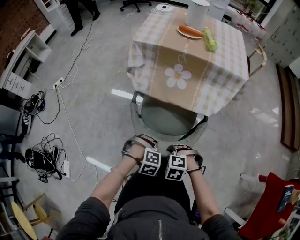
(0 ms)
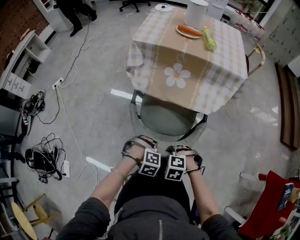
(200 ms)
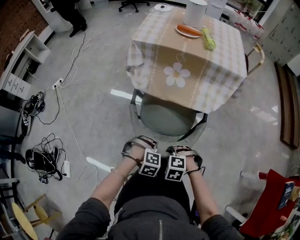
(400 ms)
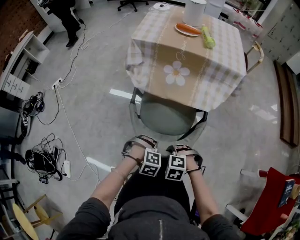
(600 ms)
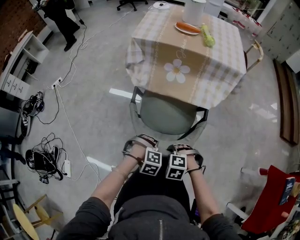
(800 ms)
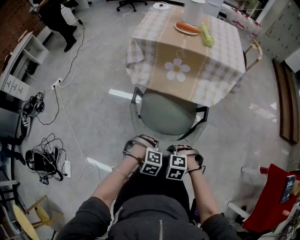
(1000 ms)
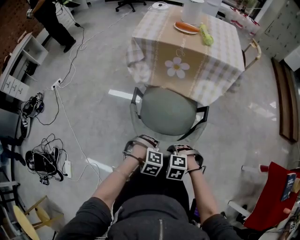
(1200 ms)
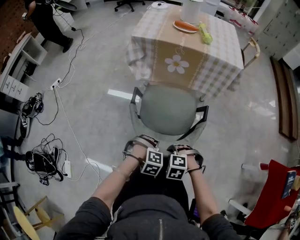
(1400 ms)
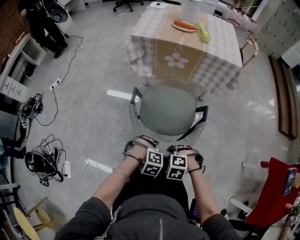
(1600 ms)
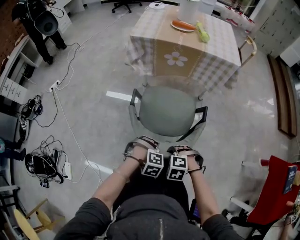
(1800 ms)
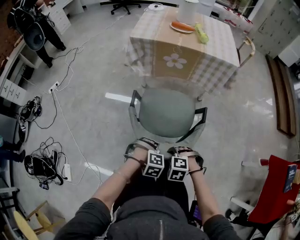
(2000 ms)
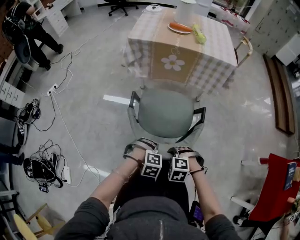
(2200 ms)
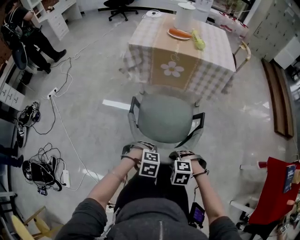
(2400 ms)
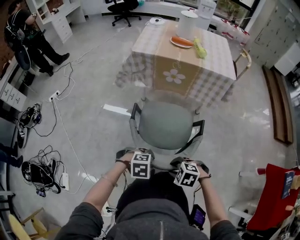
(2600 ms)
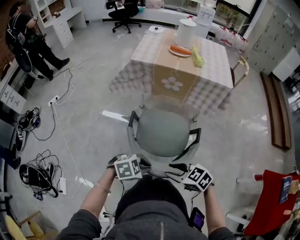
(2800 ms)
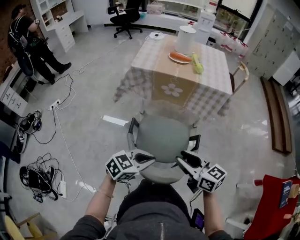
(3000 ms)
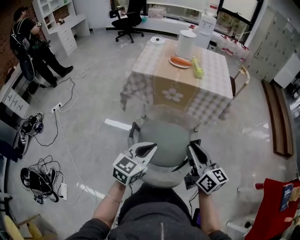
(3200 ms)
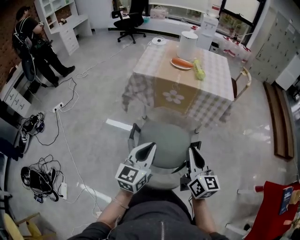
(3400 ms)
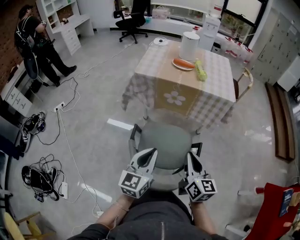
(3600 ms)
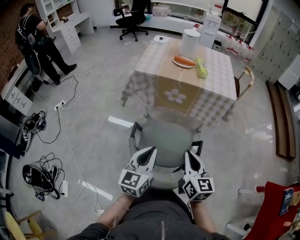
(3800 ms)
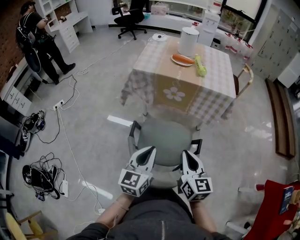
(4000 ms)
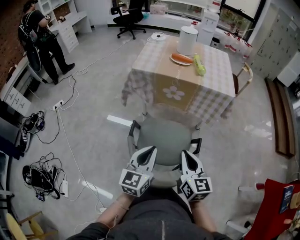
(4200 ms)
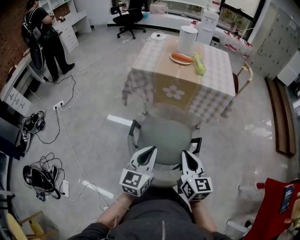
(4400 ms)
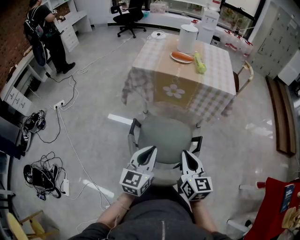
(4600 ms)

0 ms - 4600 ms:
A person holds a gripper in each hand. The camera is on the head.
0 ms - 1600 ms: The left gripper changes place by some 10 cm, while the right gripper shifts by about 10 cm.
1600 ms - 3000 ms: The two grippers go some 20 cm upward. The right gripper points its fingers roughly 60 degrees further upward; the left gripper tips its fingers upward by about 50 degrees.
3000 ms - 4600 ms: The left gripper moves forward and upward, roughly 5 cm, and changes its angle by roughly 50 degrees. Meanwhile the right gripper swivels some 30 degrees, and closes.

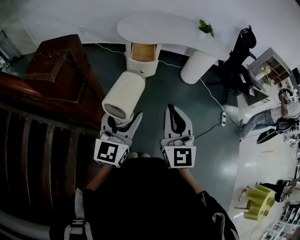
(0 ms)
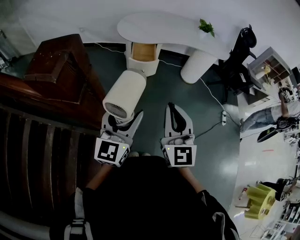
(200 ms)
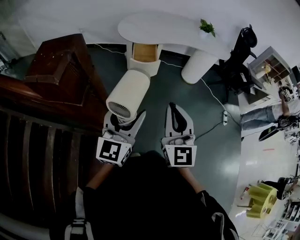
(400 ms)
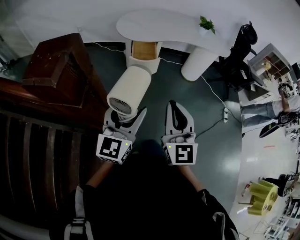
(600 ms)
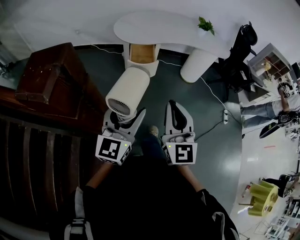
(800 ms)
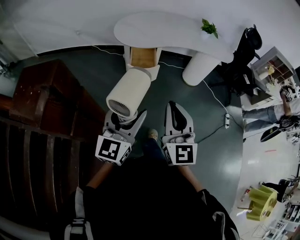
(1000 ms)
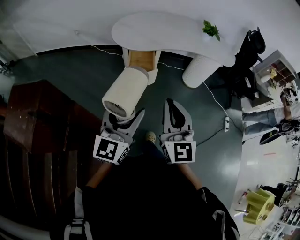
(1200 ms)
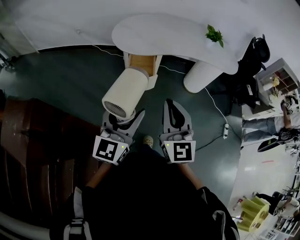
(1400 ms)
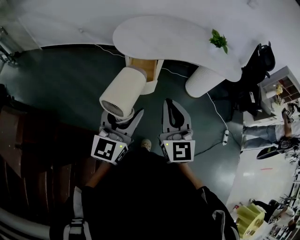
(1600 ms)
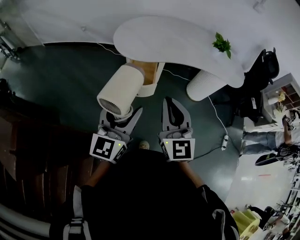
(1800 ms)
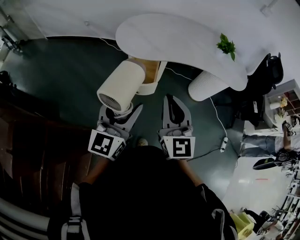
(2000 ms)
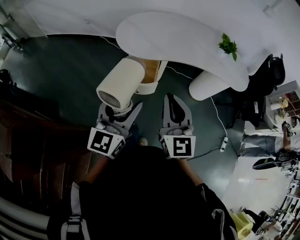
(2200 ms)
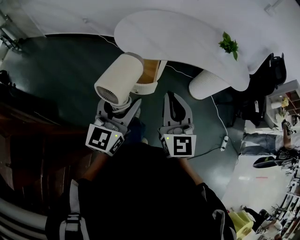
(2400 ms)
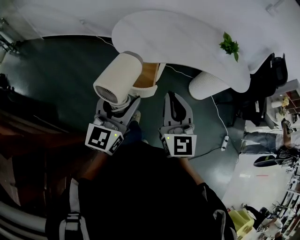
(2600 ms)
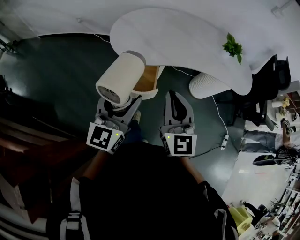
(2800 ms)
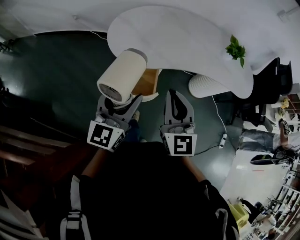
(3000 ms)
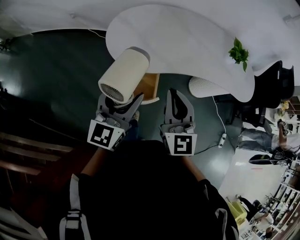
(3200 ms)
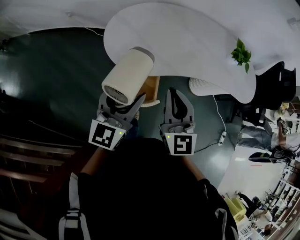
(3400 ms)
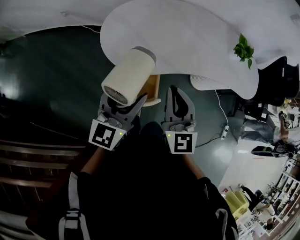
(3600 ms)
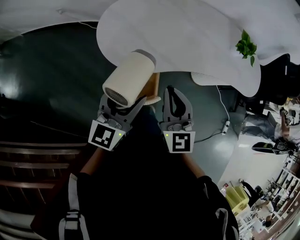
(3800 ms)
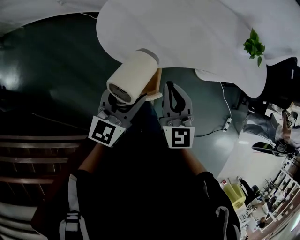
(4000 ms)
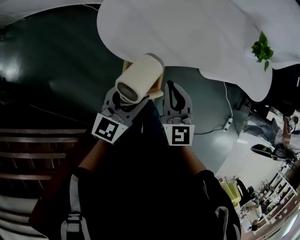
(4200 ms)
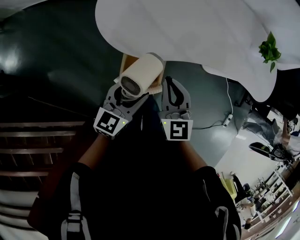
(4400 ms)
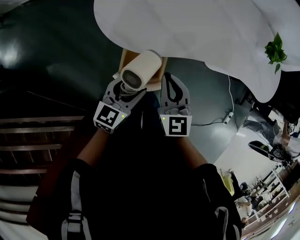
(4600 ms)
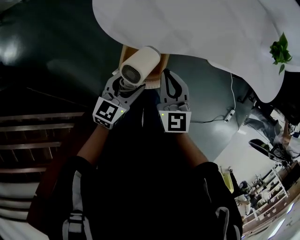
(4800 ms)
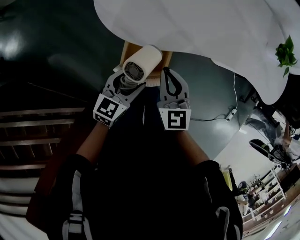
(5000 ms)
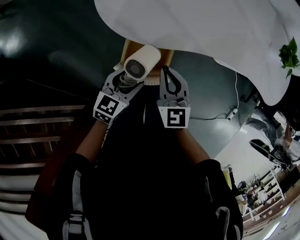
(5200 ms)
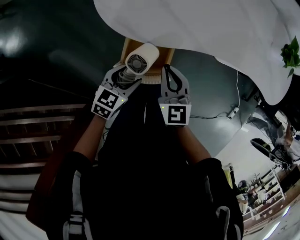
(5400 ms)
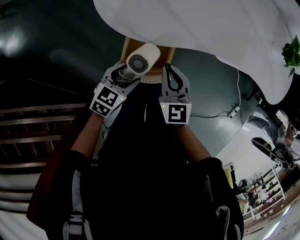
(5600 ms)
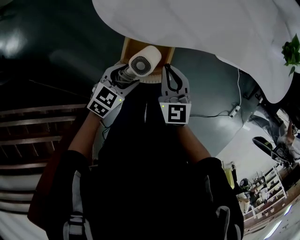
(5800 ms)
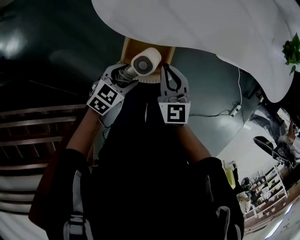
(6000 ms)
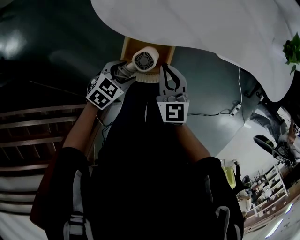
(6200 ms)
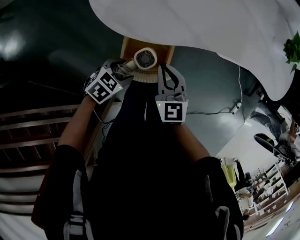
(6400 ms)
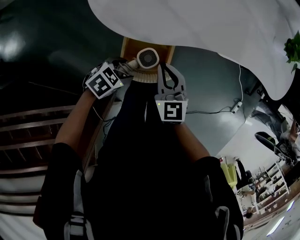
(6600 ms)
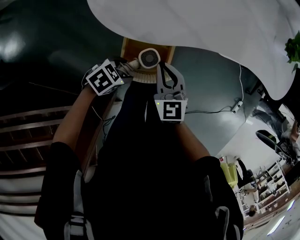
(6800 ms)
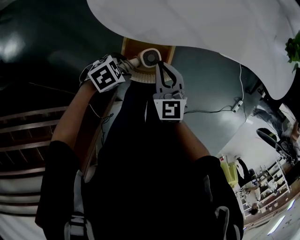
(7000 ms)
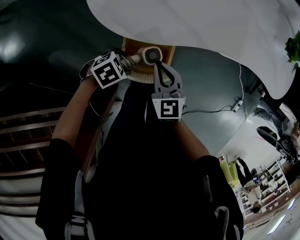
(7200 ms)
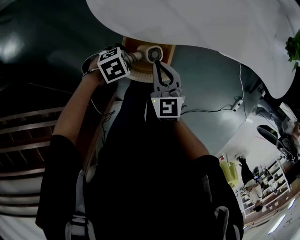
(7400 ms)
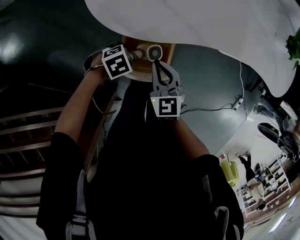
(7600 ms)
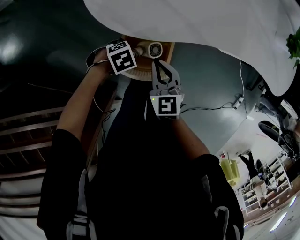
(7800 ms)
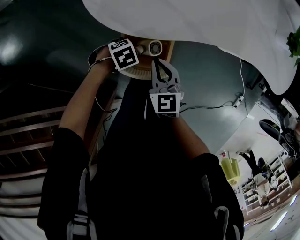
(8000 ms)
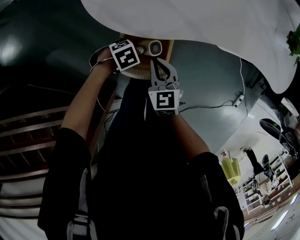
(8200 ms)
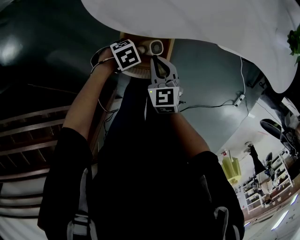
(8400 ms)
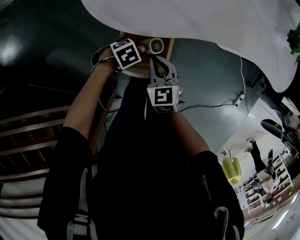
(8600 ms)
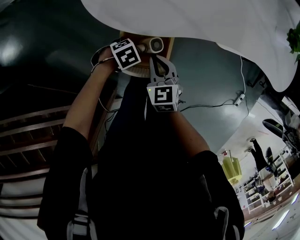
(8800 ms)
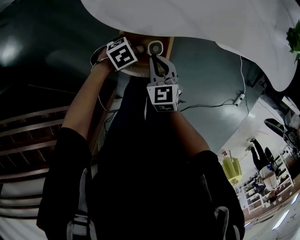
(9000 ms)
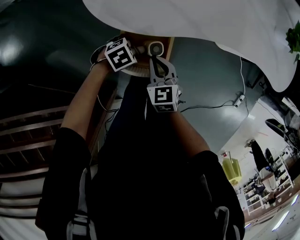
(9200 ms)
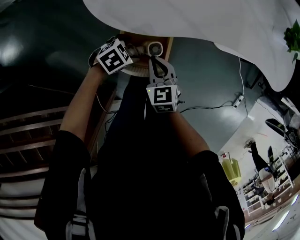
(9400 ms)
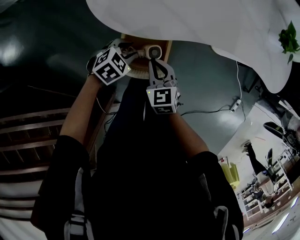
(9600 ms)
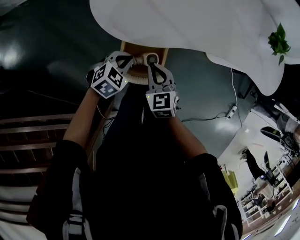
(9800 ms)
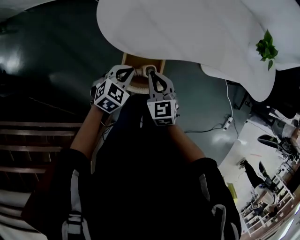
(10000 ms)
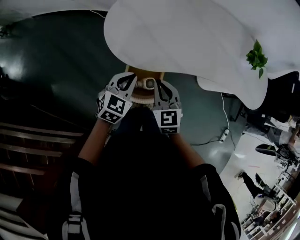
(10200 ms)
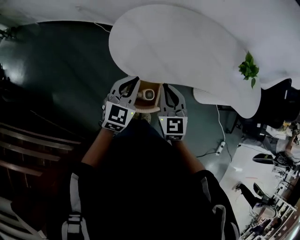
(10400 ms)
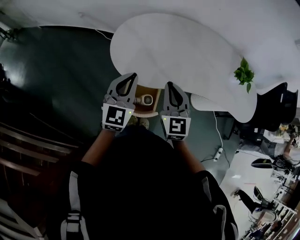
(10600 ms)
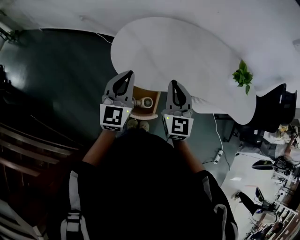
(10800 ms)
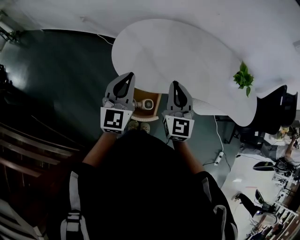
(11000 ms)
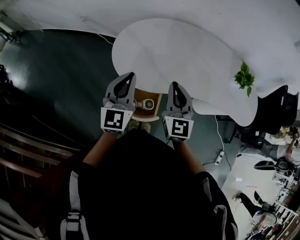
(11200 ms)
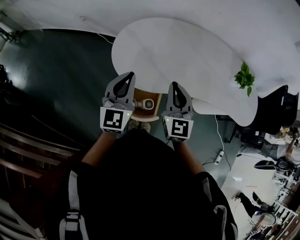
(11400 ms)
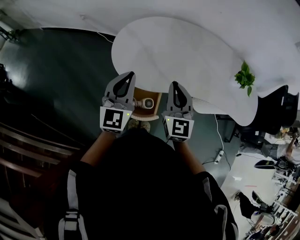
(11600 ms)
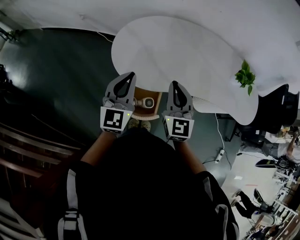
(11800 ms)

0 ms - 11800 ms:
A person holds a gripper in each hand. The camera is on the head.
0 ms - 1400 ms: Both grippers travel together forward, about 25 cm.
1400 ms - 3000 ms: The grippers both shift forward by roughly 30 cm.
3000 ms - 4400 ms: The two grippers go roughly 25 cm downward and forward. The left gripper rotates about 30 degrees.
4400 ms - 6000 ms: Both grippers travel together downward, about 15 cm. The left gripper changes its angle by roughly 30 degrees.
6000 ms - 7400 ms: The left gripper moves downward, approximately 5 cm, and changes its angle by approximately 40 degrees.
7400 ms - 8800 ms: The left gripper shifts roughly 5 cm downward.
8800 ms - 10400 ms: Both grippers move upward, roughly 30 cm. The right gripper swivels about 20 degrees. The left gripper tips its fingers upward by about 50 degrees, and closes its fingers.
10400 ms - 11800 ms: The two grippers go some 10 cm upward. The left gripper swivels roughly 20 degrees.

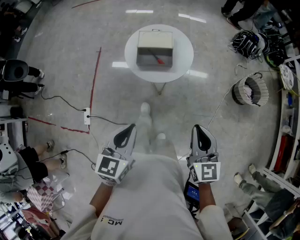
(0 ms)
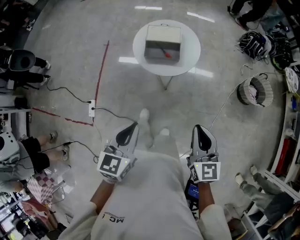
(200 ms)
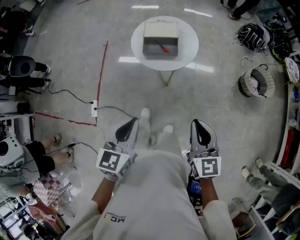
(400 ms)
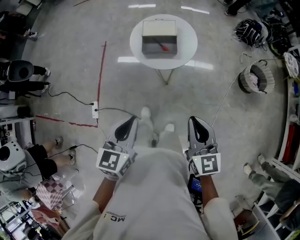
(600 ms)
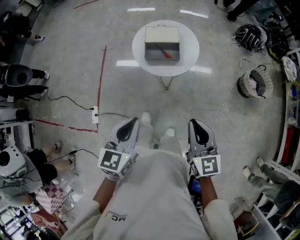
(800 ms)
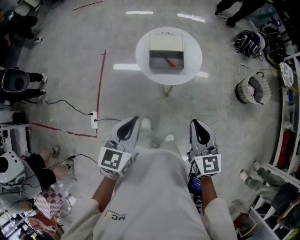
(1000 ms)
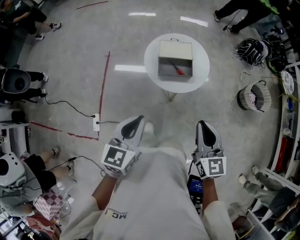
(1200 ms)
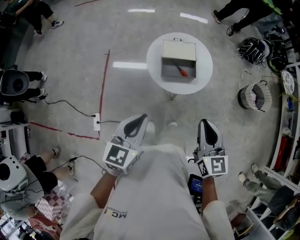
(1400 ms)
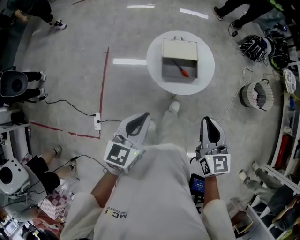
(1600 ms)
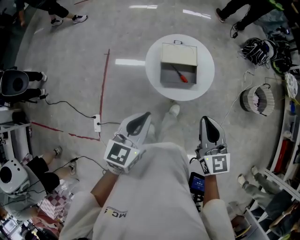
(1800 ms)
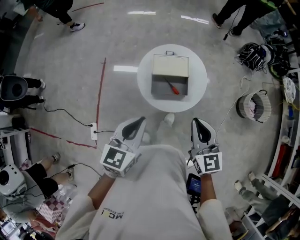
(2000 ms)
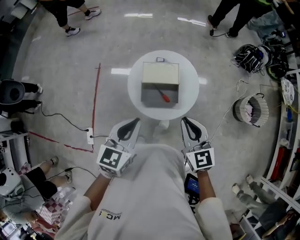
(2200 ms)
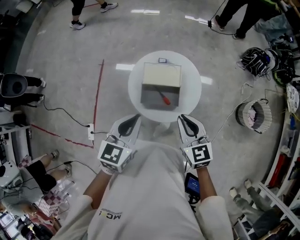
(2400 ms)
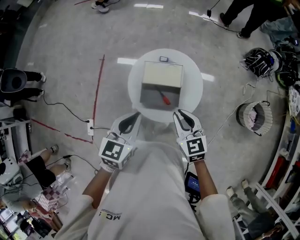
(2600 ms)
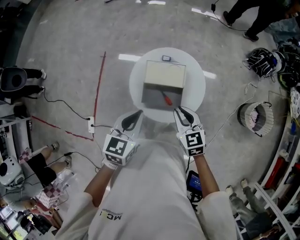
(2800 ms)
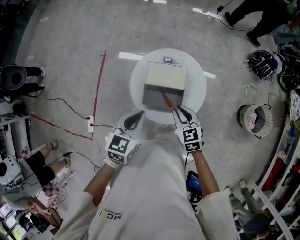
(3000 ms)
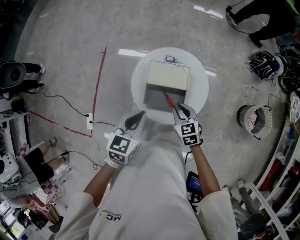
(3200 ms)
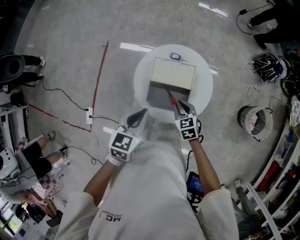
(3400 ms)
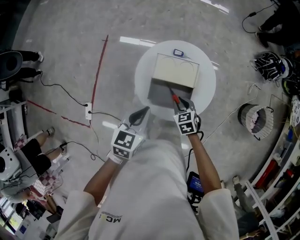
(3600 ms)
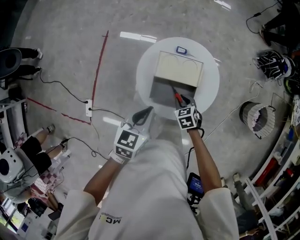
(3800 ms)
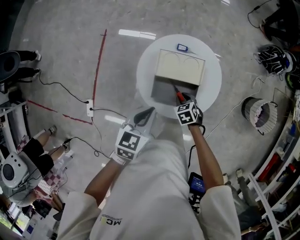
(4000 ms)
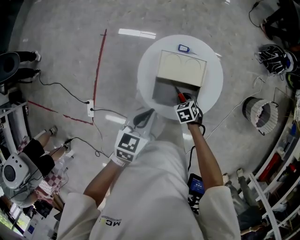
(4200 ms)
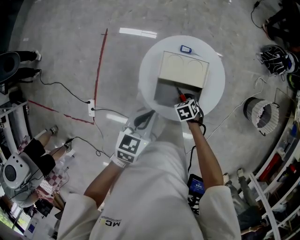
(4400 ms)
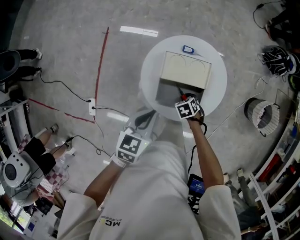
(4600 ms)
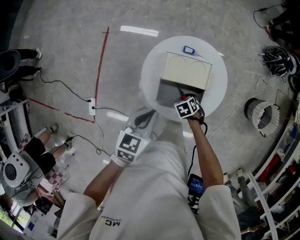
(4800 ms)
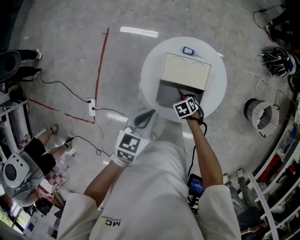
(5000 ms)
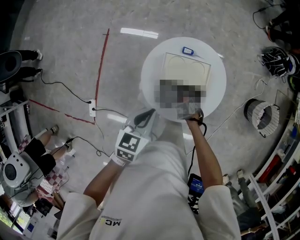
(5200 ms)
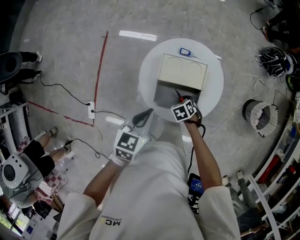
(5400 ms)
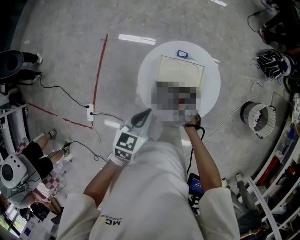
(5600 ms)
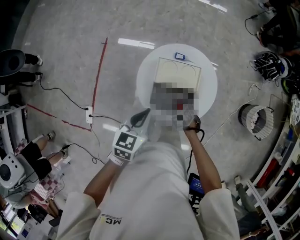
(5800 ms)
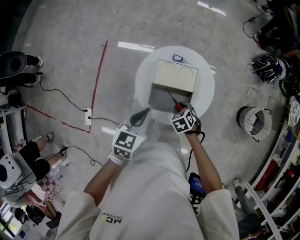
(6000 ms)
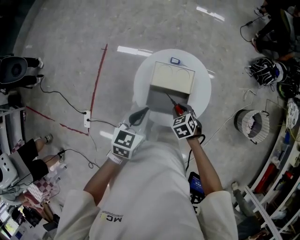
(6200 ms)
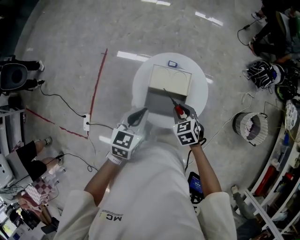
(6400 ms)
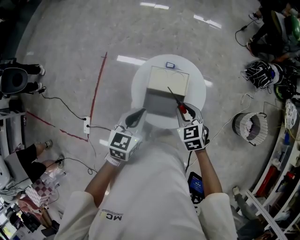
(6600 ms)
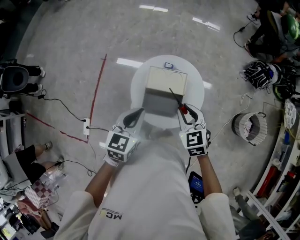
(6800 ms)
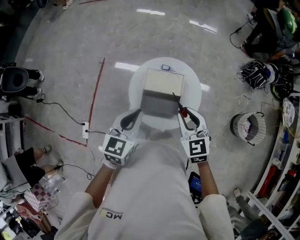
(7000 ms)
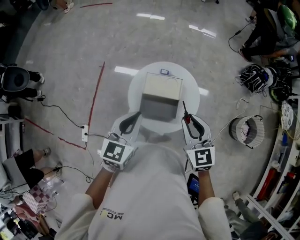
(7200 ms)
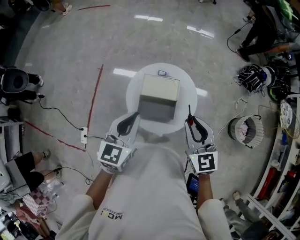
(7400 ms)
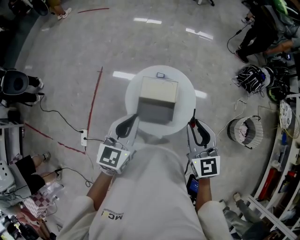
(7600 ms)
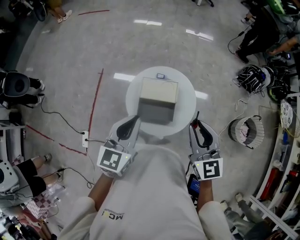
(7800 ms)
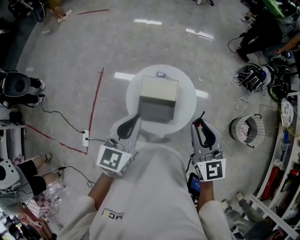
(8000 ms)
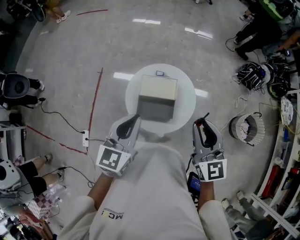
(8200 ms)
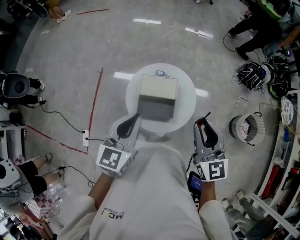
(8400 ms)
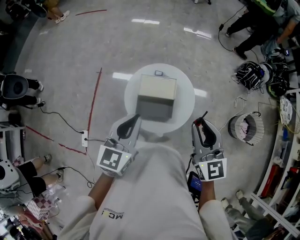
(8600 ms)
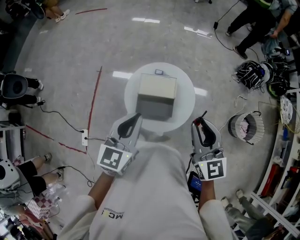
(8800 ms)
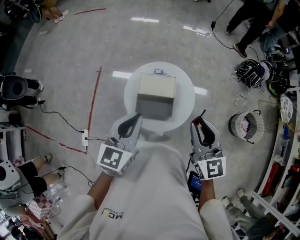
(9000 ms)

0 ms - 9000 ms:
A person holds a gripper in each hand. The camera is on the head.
0 ms - 1600 ms: The grippers both shift to the left and forward by approximately 25 cm.
1600 ms - 3000 ms: The right gripper travels forward and downward by approximately 35 cm, and swivels about 30 degrees; the left gripper heads forward and to the right, covering approximately 30 cm.
3000 ms - 4400 ms: The left gripper is displaced downward by about 10 cm, while the right gripper travels downward by about 25 cm, and angles its fingers downward, by approximately 40 degrees.
4400 ms - 6000 ms: The right gripper heads upward, covering about 10 cm, while the left gripper is displaced upward by about 5 cm.
6000 ms - 7600 ms: The right gripper heads upward, covering roughly 35 cm, and points its fingers some 50 degrees further upward. Meanwhile the left gripper shifts approximately 15 cm upward, and changes its angle by some 20 degrees.
7600 ms - 9000 ms: The grippers stay close to where they were, moving slightly.
